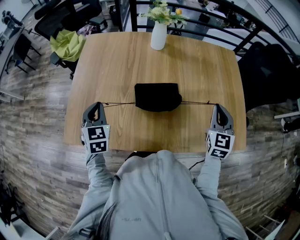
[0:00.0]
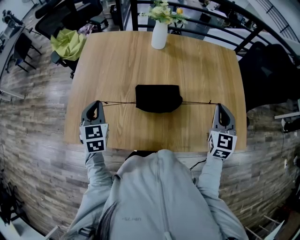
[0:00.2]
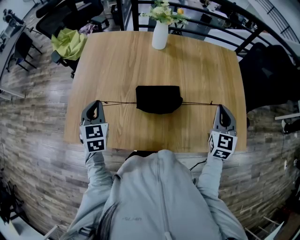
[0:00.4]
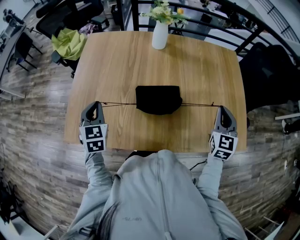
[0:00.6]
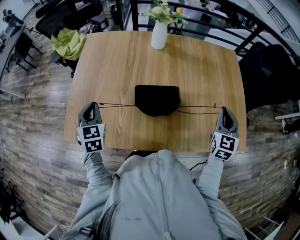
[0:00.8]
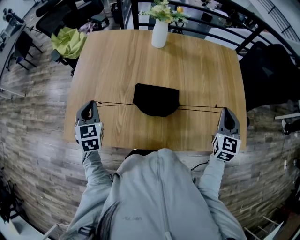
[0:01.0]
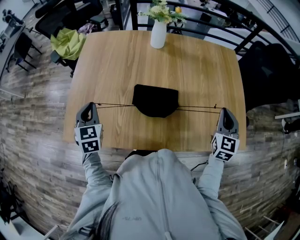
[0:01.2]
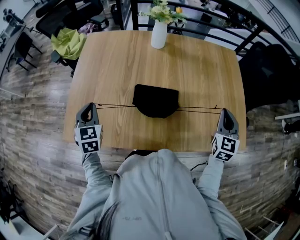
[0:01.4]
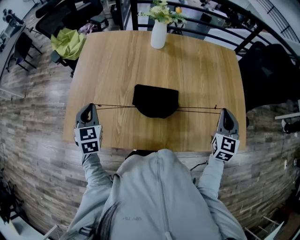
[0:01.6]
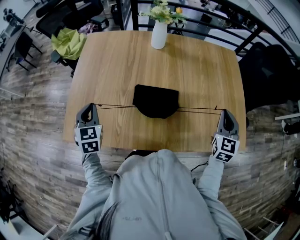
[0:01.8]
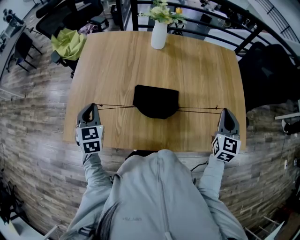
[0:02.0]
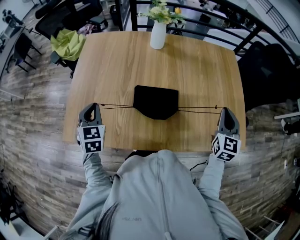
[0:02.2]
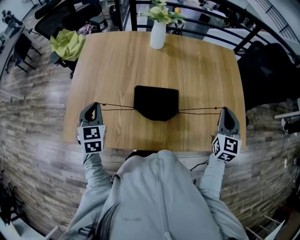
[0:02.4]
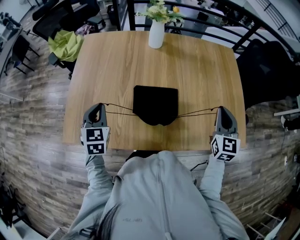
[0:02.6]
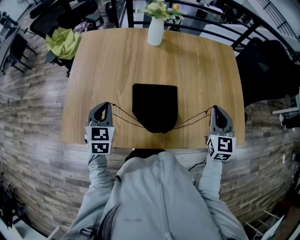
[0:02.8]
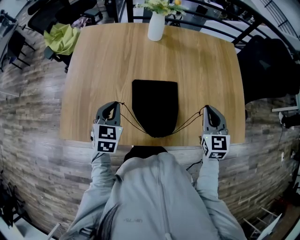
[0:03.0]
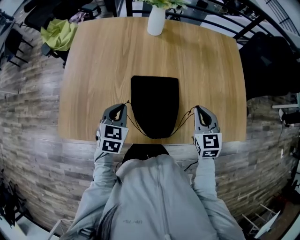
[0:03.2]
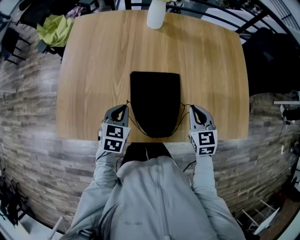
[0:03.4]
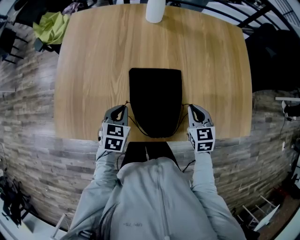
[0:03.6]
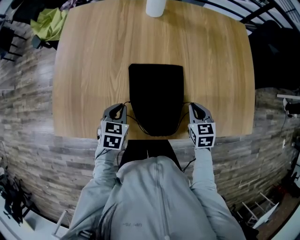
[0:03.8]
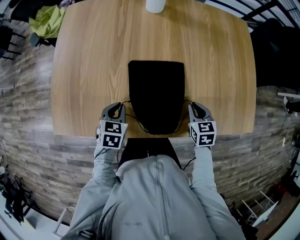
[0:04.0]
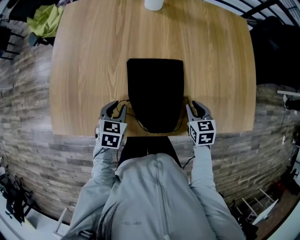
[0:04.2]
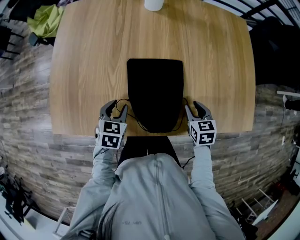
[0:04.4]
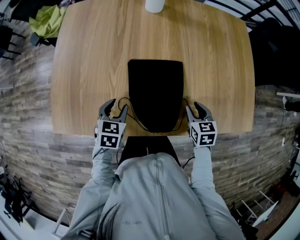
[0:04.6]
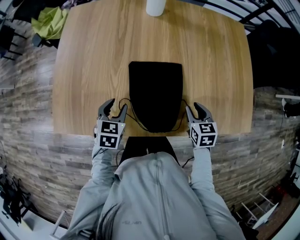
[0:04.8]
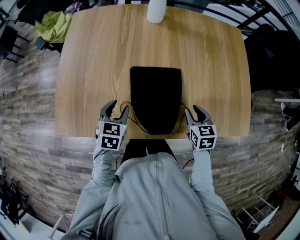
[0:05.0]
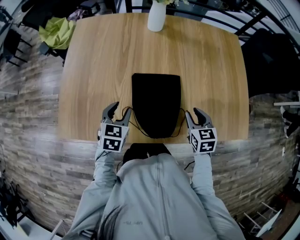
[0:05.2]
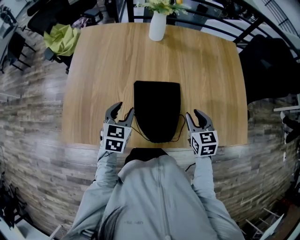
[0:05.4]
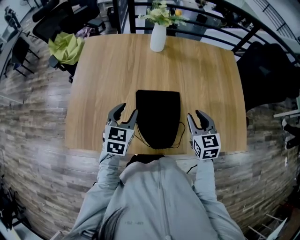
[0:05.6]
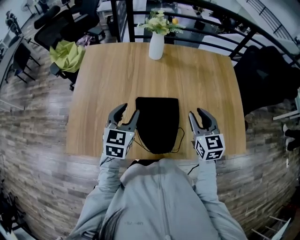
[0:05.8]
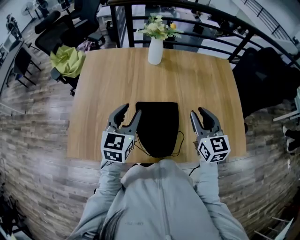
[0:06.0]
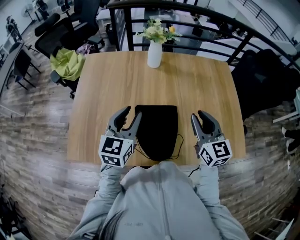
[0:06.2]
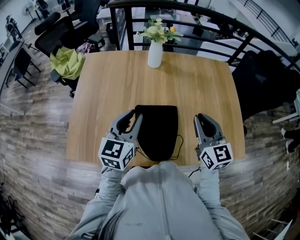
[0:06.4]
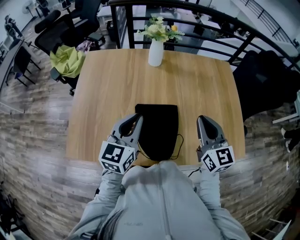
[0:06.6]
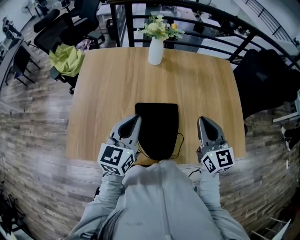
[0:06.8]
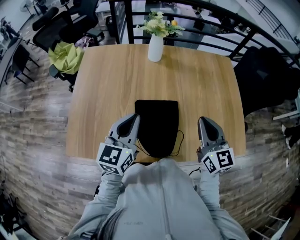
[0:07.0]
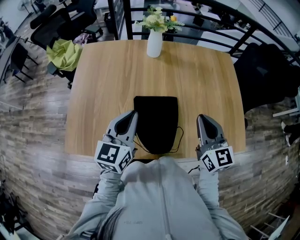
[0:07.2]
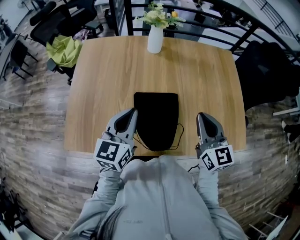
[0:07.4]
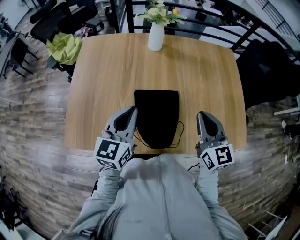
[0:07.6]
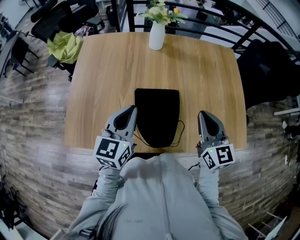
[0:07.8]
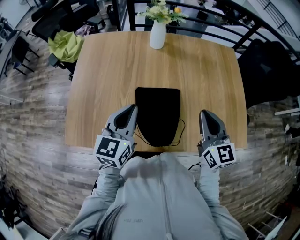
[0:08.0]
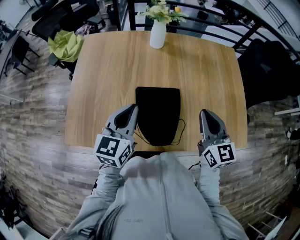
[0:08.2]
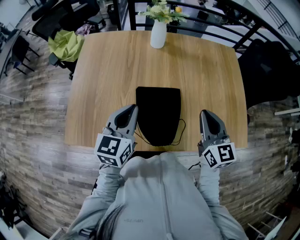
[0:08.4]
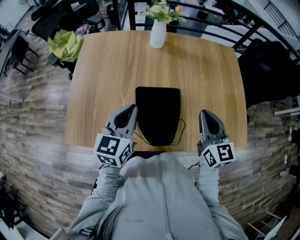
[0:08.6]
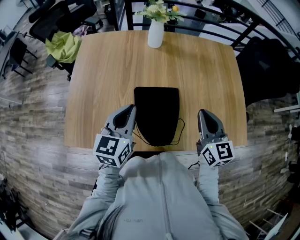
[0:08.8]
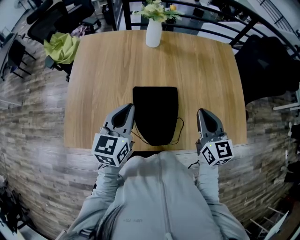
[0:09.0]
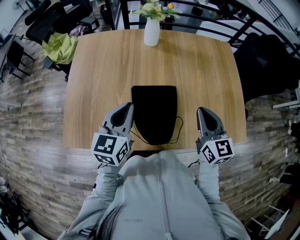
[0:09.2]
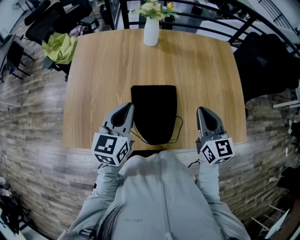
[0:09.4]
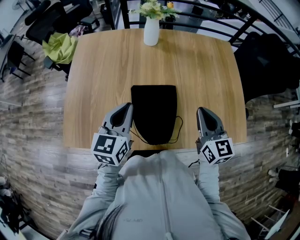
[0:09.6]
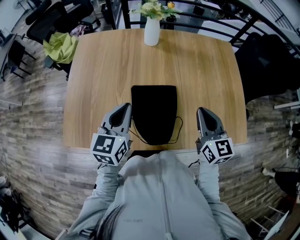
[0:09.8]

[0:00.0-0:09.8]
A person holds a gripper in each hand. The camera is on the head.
0:00.0 to 0:01.4: The grippers make only small movements.
0:01.4 to 0:02.8: The right gripper shifts about 5 cm to the left, while the left gripper shifts approximately 5 cm to the right.
0:02.8 to 0:04.2: The grippers both shift downward by about 20 cm. The right gripper tilts its fingers some 30 degrees downward. The left gripper rotates about 30 degrees.
0:04.2 to 0:05.6: The left gripper travels upward and forward by about 15 cm, and rotates some 20 degrees. Meanwhile the right gripper heads upward, covering some 15 cm, and turns by some 20 degrees.
0:05.6 to 0:07.0: The grippers both shift upward by about 10 cm. The left gripper rotates some 20 degrees, and closes. The right gripper rotates roughly 20 degrees, and closes its fingers.
0:07.0 to 0:09.8: The grippers move only a little.

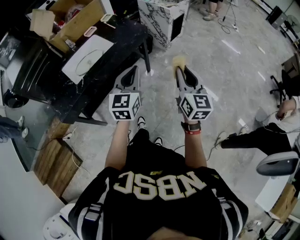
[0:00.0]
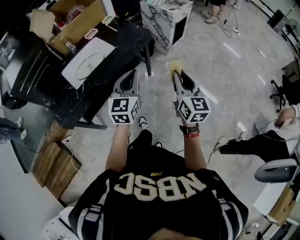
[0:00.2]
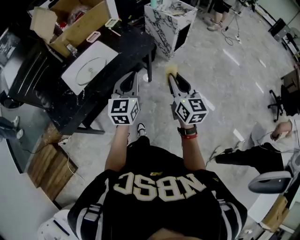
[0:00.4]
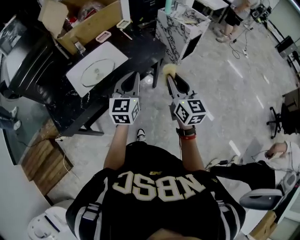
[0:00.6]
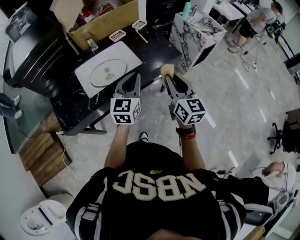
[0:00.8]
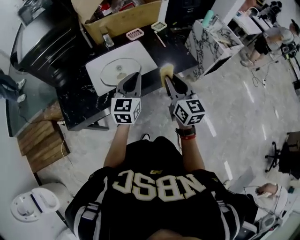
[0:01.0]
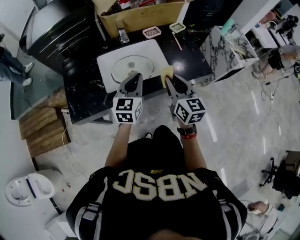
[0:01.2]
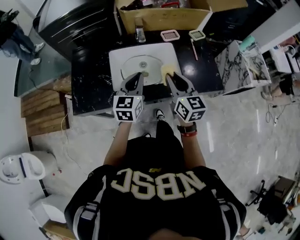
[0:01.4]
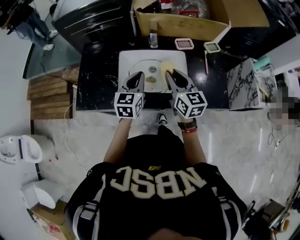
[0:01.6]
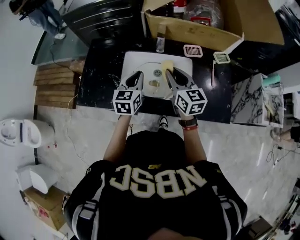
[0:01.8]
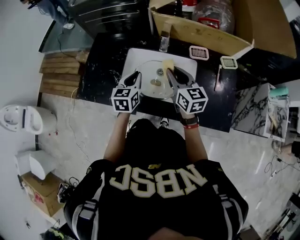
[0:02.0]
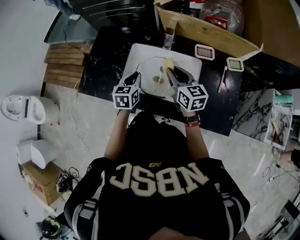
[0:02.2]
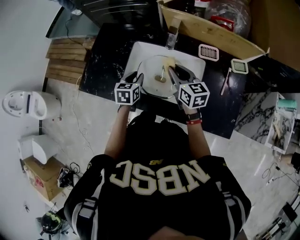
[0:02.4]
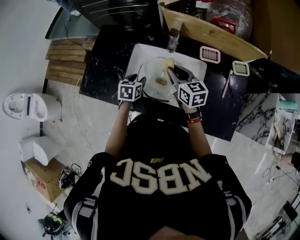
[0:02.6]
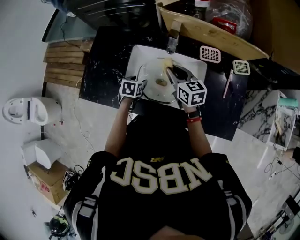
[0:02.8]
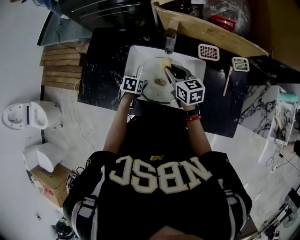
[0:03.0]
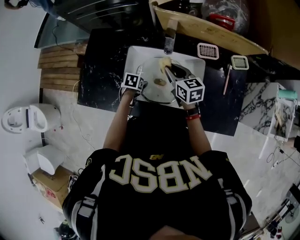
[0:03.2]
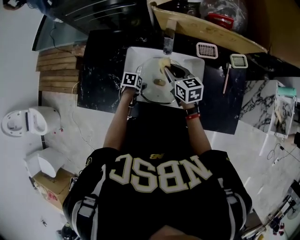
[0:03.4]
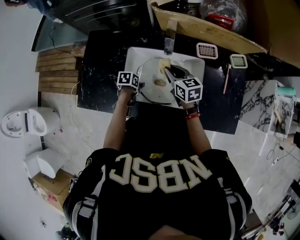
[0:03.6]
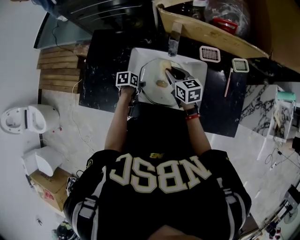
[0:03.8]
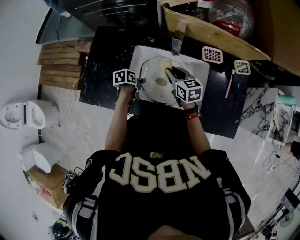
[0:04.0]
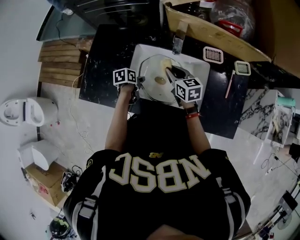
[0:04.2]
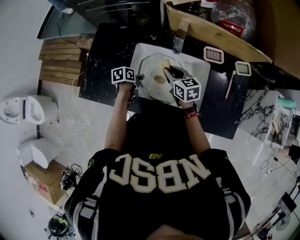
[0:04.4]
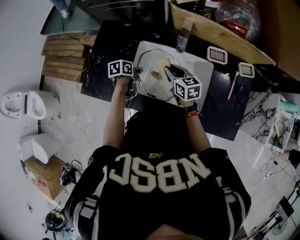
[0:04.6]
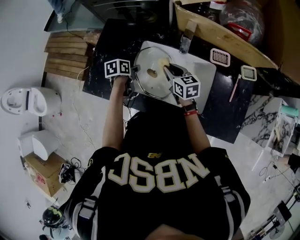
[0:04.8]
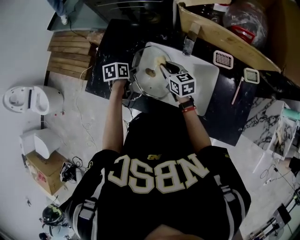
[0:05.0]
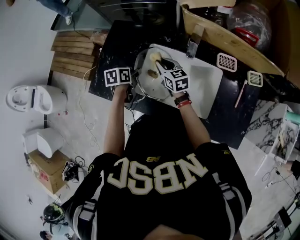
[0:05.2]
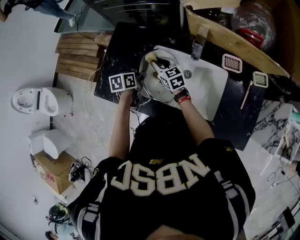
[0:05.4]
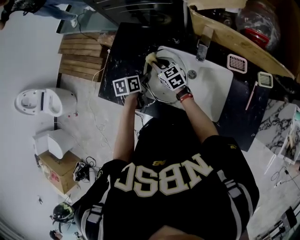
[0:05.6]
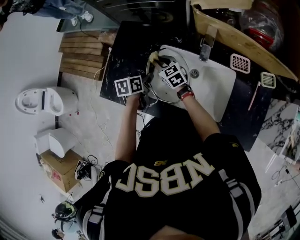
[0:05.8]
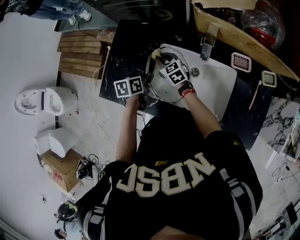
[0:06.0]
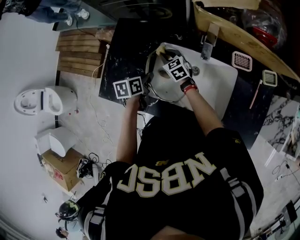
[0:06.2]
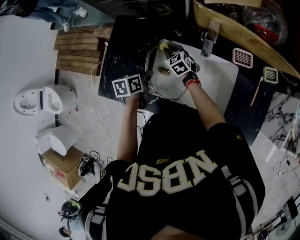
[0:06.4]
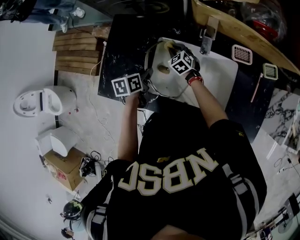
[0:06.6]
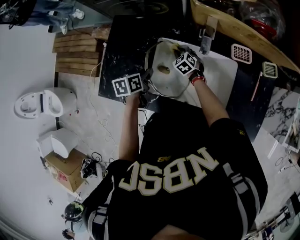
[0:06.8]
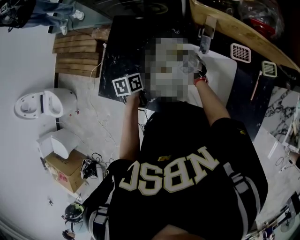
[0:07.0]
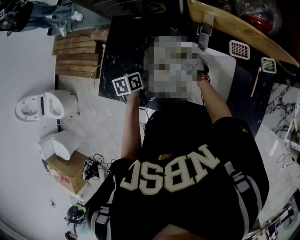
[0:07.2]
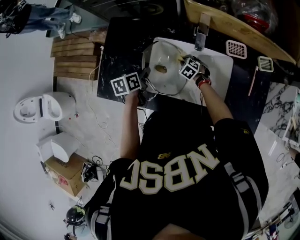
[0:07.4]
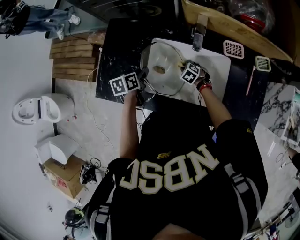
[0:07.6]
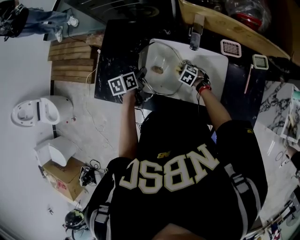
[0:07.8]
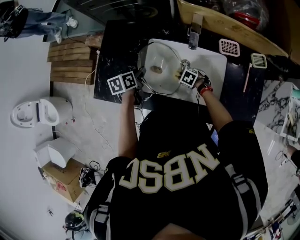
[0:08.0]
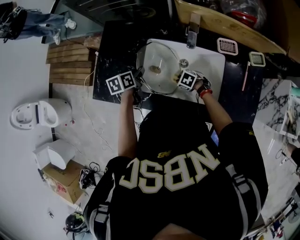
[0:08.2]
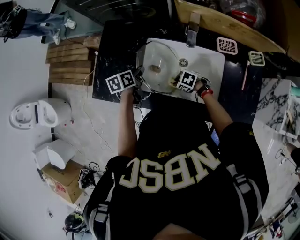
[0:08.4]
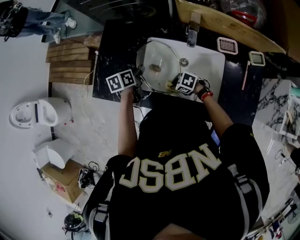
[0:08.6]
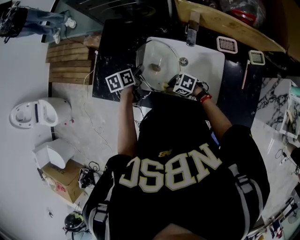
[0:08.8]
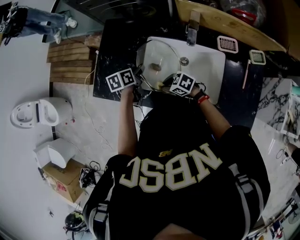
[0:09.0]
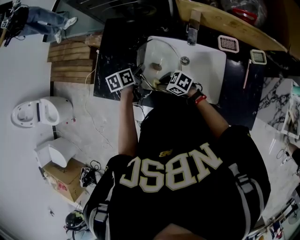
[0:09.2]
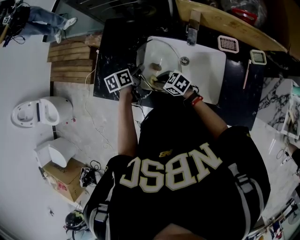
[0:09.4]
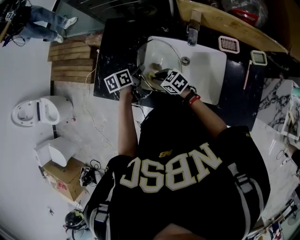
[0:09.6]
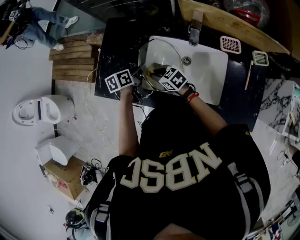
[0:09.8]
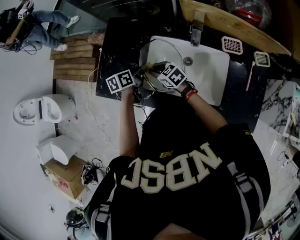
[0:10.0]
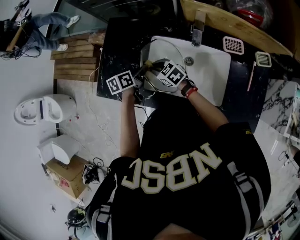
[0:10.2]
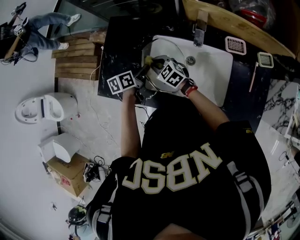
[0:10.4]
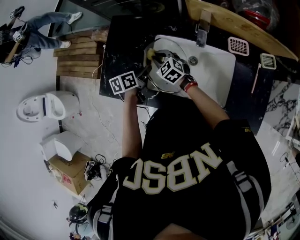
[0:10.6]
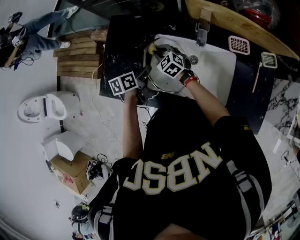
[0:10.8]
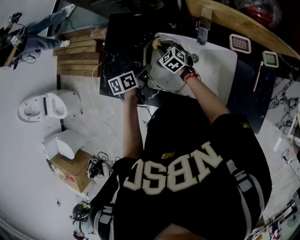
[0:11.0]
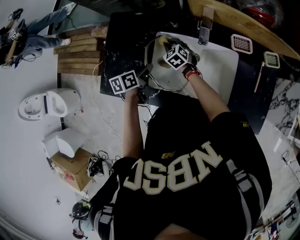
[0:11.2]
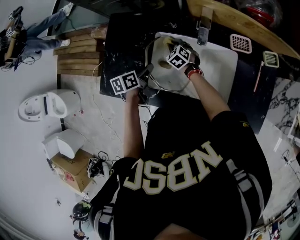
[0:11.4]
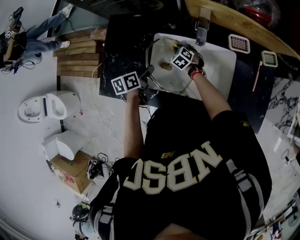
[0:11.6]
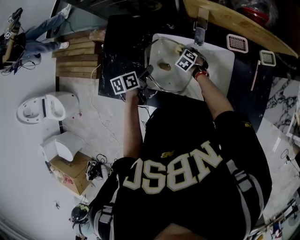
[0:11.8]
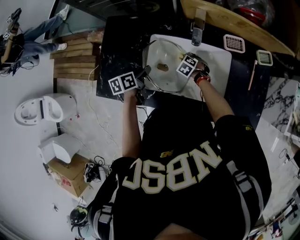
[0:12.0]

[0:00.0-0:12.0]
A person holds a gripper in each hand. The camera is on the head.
0:00.0 to 0:01.6: Both grippers are carried roughly 50 cm. The right gripper rotates some 60 degrees, while the left gripper turns by roughly 50 degrees.
0:01.6 to 0:03.0: The left gripper shifts roughly 25 cm downward, tips its fingers downward by approximately 50 degrees, and opens its fingers, while the right gripper heads forward and downward, covering about 20 cm, and swivels some 30 degrees.
0:03.0 to 0:04.4: The left gripper rotates some 30 degrees, and closes its fingers.
0:04.4 to 0:06.0: The left gripper travels upward and to the left by approximately 10 cm. Meanwhile the right gripper shifts roughly 20 cm to the left, forward and downward, and rotates roughly 20 degrees.
0:06.0 to 0:07.6: The right gripper is displaced to the right, downward and backward by some 25 cm, and tips its fingers downward by roughly 40 degrees.
0:07.6 to 0:09.0: The right gripper ends up approximately 20 cm from where it was, and swivels about 40 degrees.
0:09.0 to 0:10.4: The right gripper changes place by roughly 15 cm, and swivels some 30 degrees.
0:10.4 to 0:12.0: The right gripper moves to the right and downward, about 25 cm, and angles its fingers downward, by some 30 degrees.

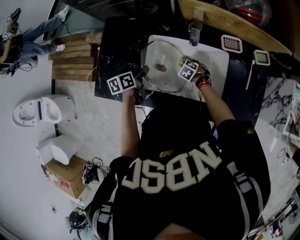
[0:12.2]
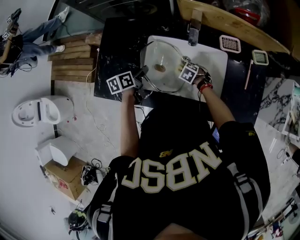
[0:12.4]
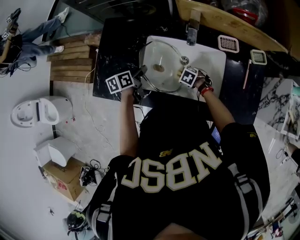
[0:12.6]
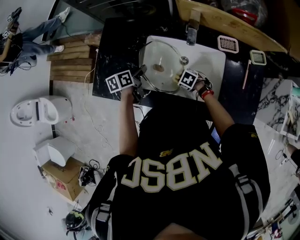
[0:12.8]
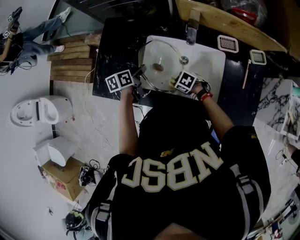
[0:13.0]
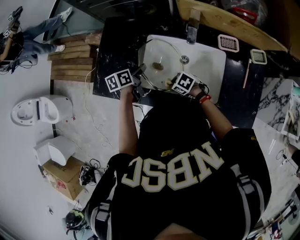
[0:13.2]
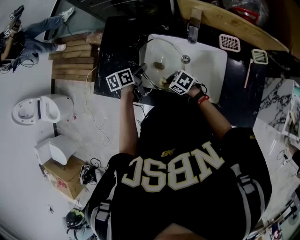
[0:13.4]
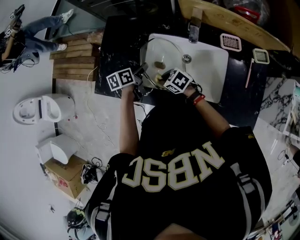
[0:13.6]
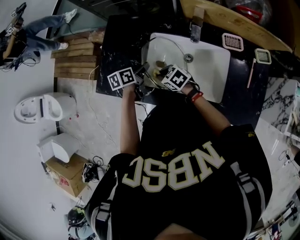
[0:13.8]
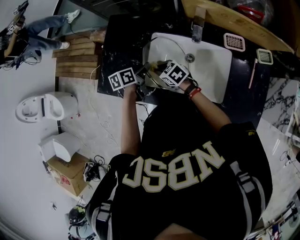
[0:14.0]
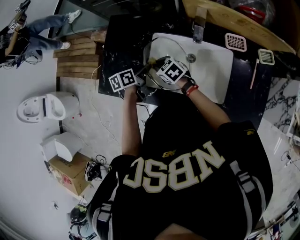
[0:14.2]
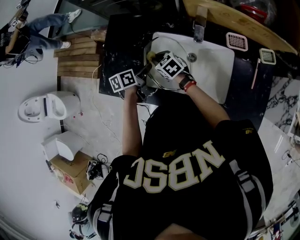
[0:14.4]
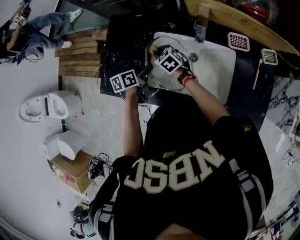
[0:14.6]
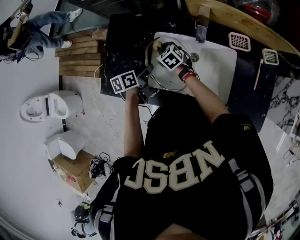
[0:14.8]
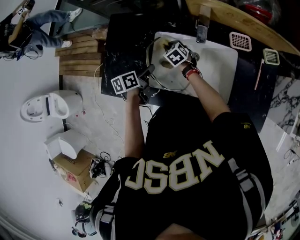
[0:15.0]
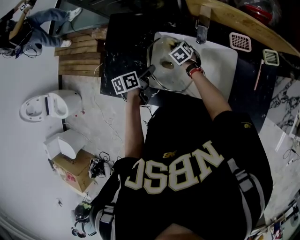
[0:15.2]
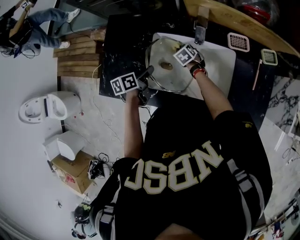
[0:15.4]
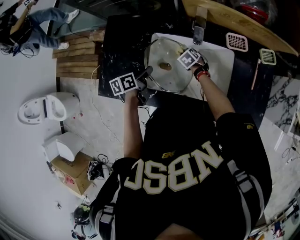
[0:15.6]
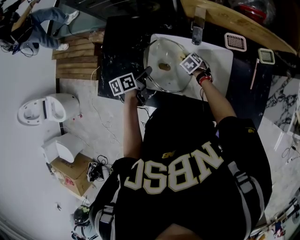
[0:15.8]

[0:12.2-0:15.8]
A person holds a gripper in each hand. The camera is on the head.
0:12.2 to 0:14.0: The right gripper moves approximately 20 cm, and tips its fingers upward by about 30 degrees.
0:14.0 to 0:15.8: The right gripper is displaced to the right and downward by some 20 cm, and turns by some 30 degrees.
